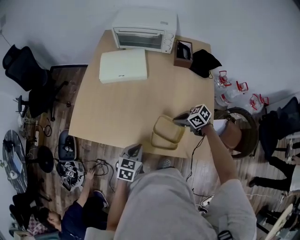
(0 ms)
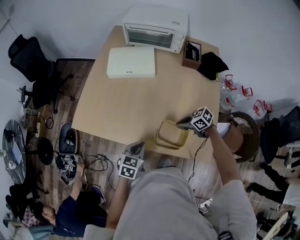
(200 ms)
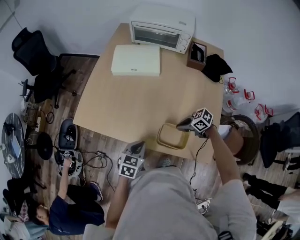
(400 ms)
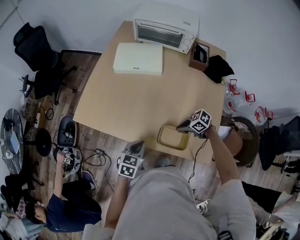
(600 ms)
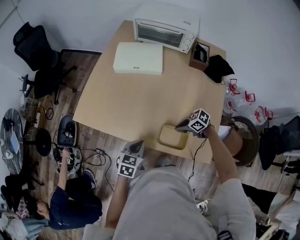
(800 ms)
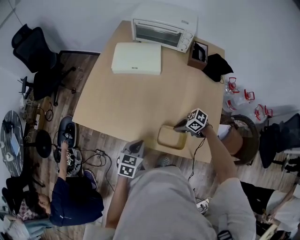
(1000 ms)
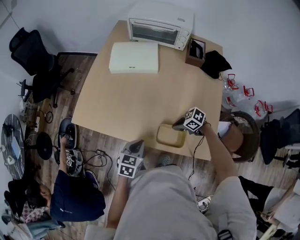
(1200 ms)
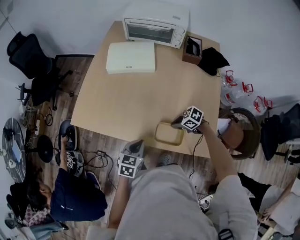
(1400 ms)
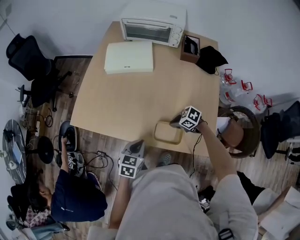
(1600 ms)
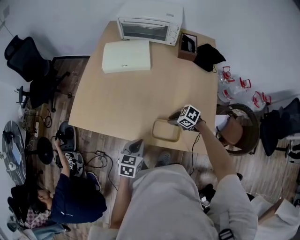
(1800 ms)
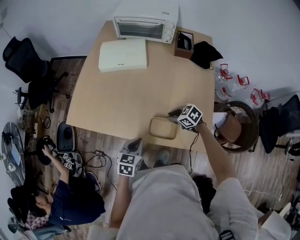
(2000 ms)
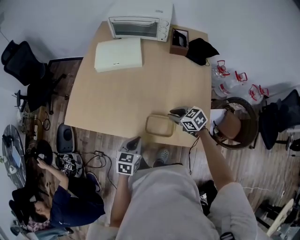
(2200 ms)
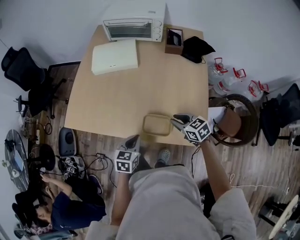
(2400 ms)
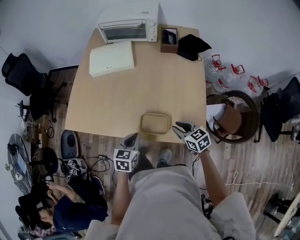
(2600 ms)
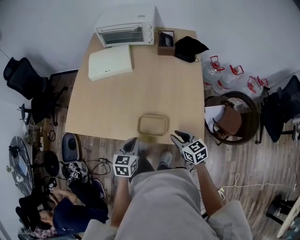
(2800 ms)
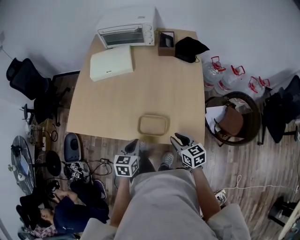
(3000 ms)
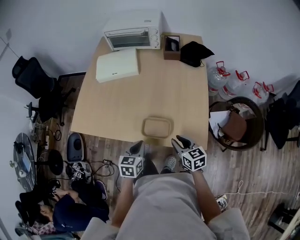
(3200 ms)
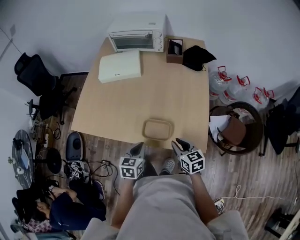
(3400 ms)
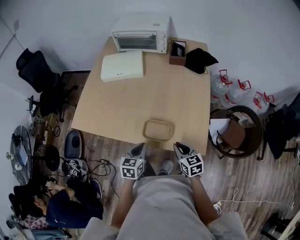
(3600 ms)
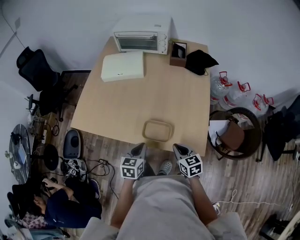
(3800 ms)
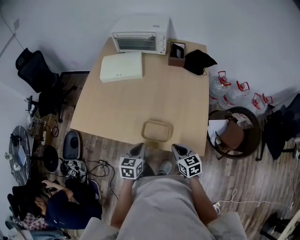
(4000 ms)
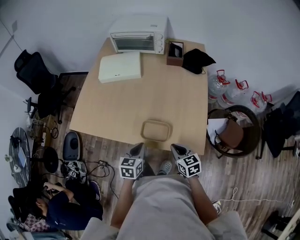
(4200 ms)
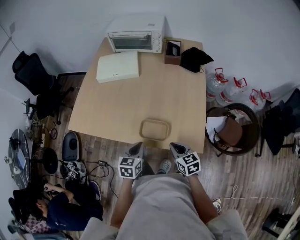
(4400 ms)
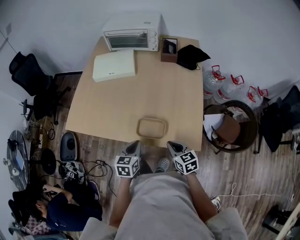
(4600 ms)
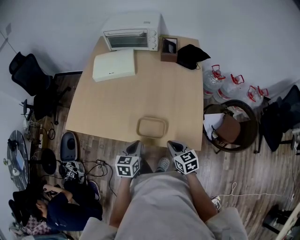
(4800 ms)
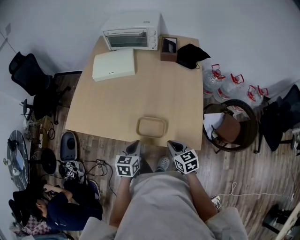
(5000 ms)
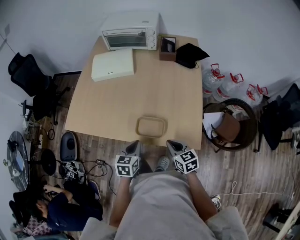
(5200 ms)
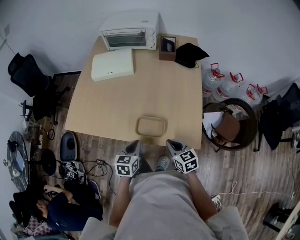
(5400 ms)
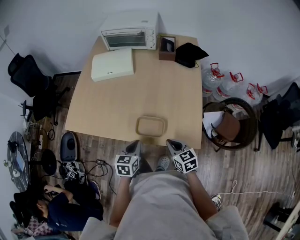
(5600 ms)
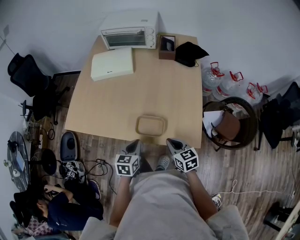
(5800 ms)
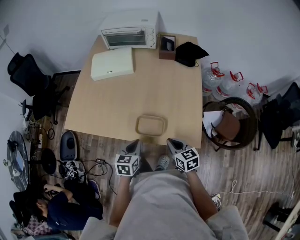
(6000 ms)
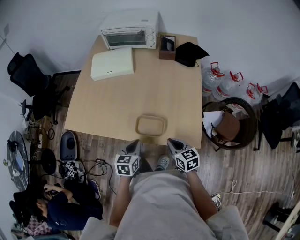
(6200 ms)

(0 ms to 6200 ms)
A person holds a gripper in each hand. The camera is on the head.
0 ms - 1600 ms: The right gripper shifts about 5 cm downward, and swivels some 20 degrees.
1600 ms - 3200 ms: The left gripper shifts by roughly 10 cm. The right gripper ends up roughly 20 cm from where it was, and swivels some 60 degrees.
3200 ms - 4600 ms: The right gripper closes its fingers.
4600 ms - 6200 ms: Both grippers stay about where they are.

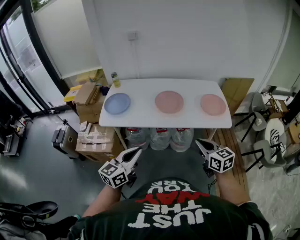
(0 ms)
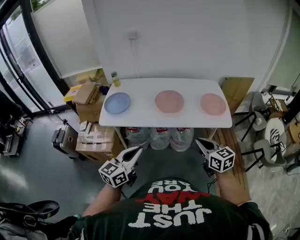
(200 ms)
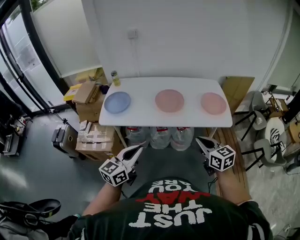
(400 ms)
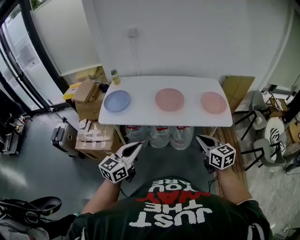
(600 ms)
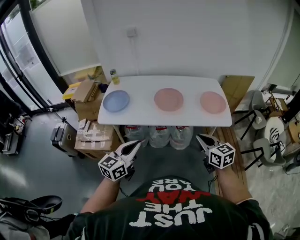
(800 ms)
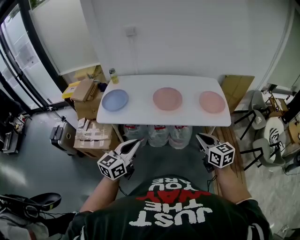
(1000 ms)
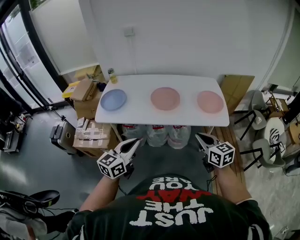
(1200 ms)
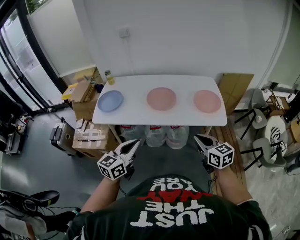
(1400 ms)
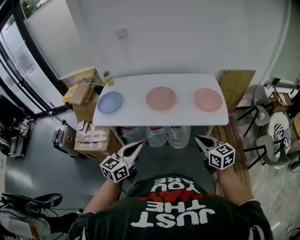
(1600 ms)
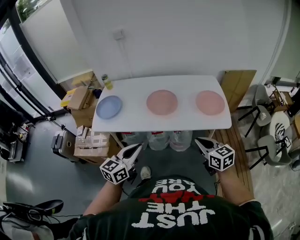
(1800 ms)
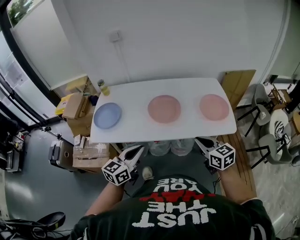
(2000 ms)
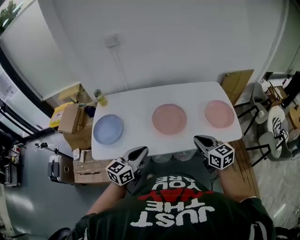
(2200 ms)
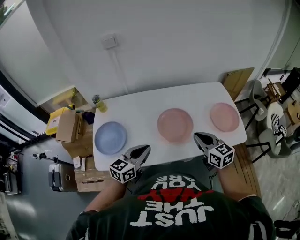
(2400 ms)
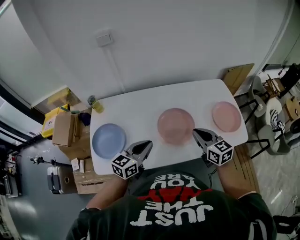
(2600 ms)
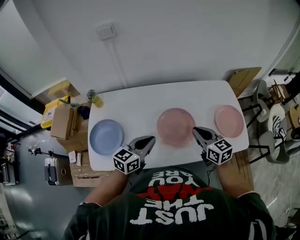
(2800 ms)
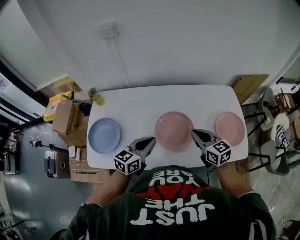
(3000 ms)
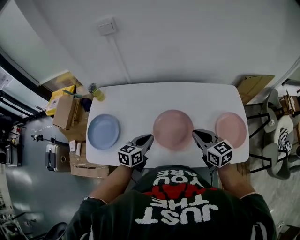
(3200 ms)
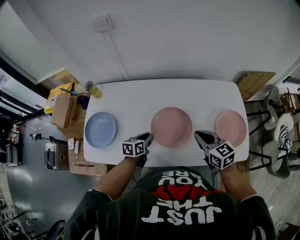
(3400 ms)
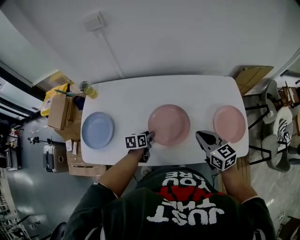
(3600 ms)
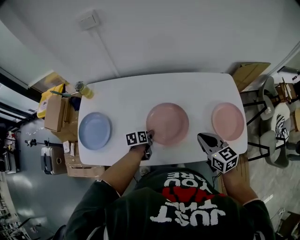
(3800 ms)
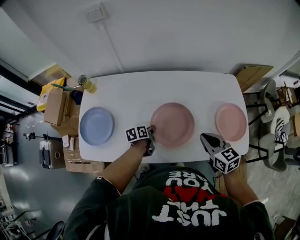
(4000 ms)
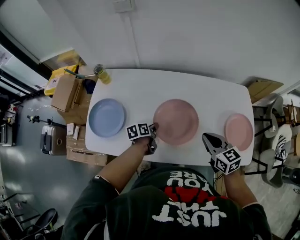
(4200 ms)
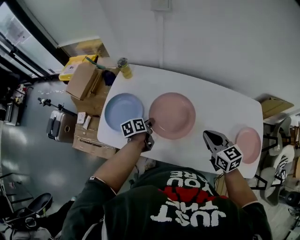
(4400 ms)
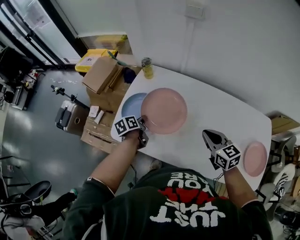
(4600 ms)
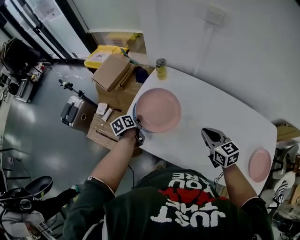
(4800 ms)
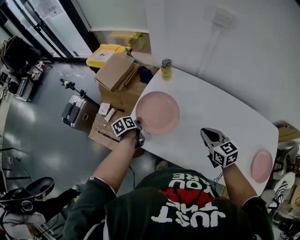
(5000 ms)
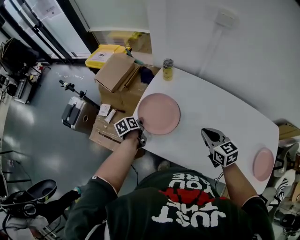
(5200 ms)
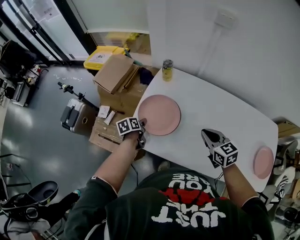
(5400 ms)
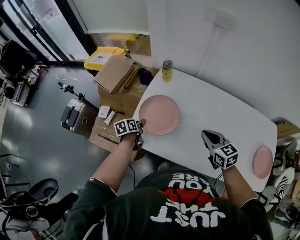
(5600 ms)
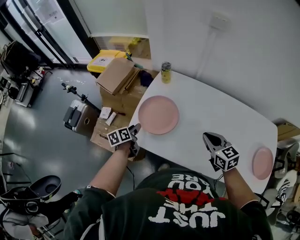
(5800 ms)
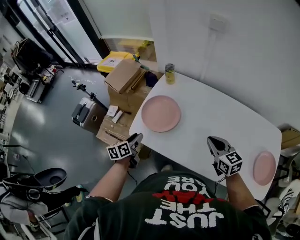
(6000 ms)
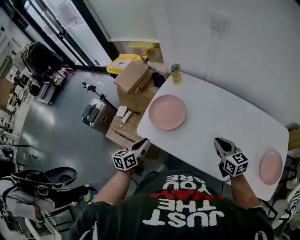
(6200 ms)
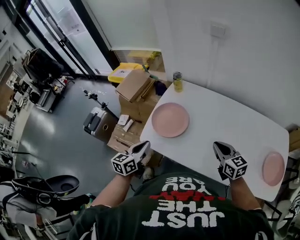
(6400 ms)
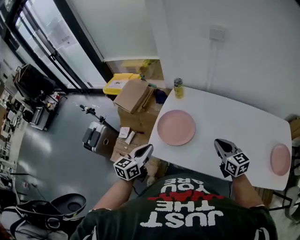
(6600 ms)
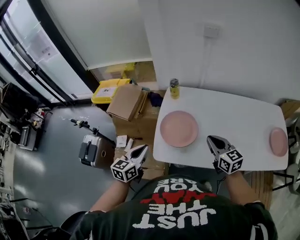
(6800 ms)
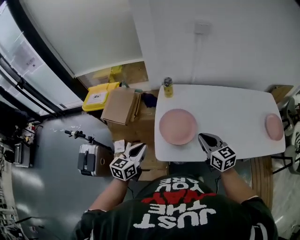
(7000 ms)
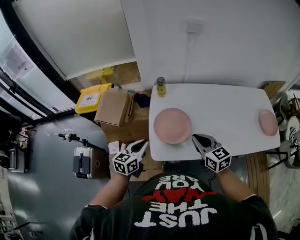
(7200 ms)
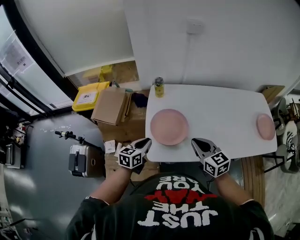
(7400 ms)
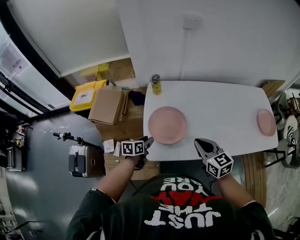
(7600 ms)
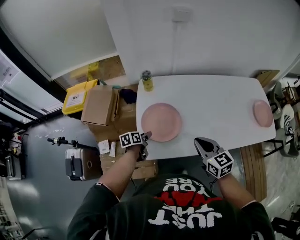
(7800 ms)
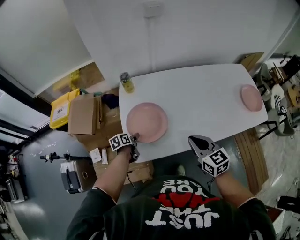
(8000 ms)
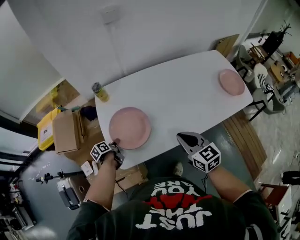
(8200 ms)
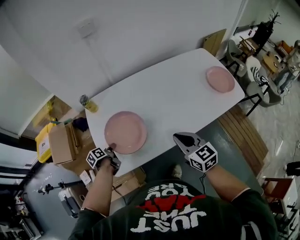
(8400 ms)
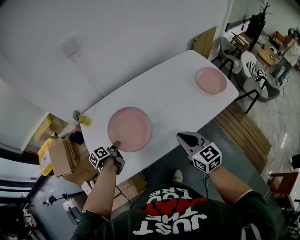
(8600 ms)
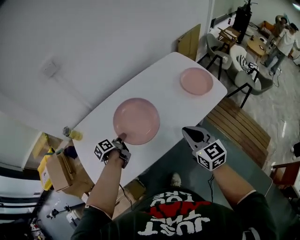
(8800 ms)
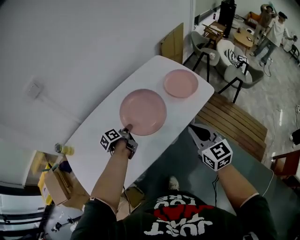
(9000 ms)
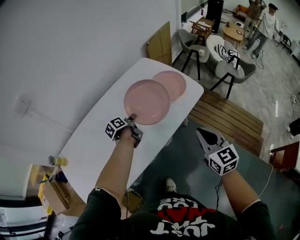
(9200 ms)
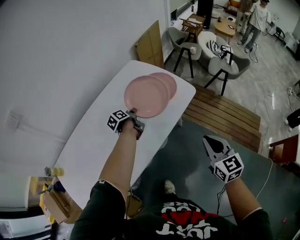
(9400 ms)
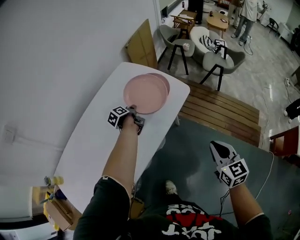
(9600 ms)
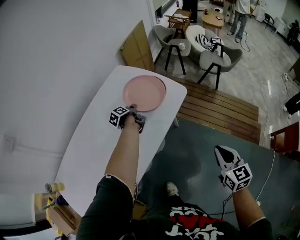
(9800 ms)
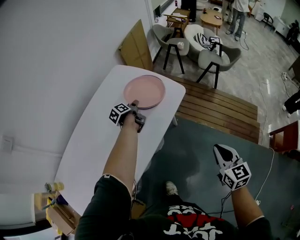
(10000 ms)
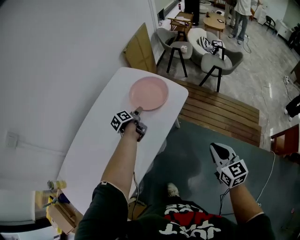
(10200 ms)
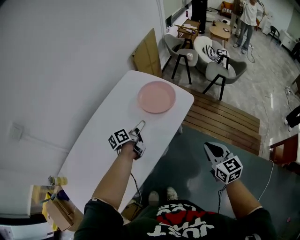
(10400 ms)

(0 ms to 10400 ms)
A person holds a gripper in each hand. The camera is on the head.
0 ms - 1400 ms: Both grippers move to the right, approximately 5 cm.
1400 ms - 3000 ms: Both grippers are carried forward, some 40 cm.
3000 ms - 4400 ms: The right gripper travels to the left by some 10 cm. The left gripper goes about 25 cm downward, to the left and forward, rolls counterclockwise, seen from behind, by roughly 50 degrees, and opens, then closes once more.
4400 ms - 6000 ms: The left gripper goes some 30 cm to the left, changes its angle by roughly 20 degrees, and opens; the right gripper heads to the left, covering some 15 cm.
6000 ms - 7400 ms: The right gripper changes place by roughly 25 cm, and swivels roughly 20 degrees. Meanwhile the left gripper reaches roughly 10 cm upward, then returns, rotates roughly 50 degrees, and closes up.
7400 ms - 9000 ms: Both grippers are carried some 50 cm. The right gripper swivels roughly 40 degrees, while the left gripper swivels about 40 degrees, and opens and closes again.
9000 ms - 10400 ms: The right gripper heads to the right, covering roughly 20 cm. Meanwhile the left gripper moves to the right and forward, some 25 cm, swivels about 30 degrees, and opens.

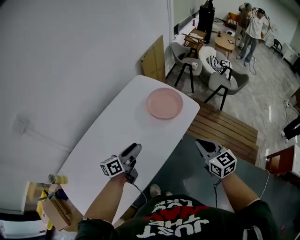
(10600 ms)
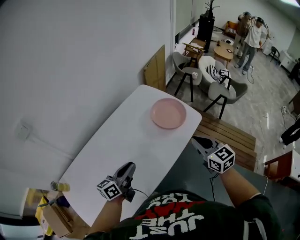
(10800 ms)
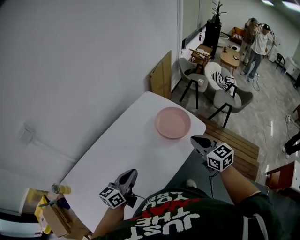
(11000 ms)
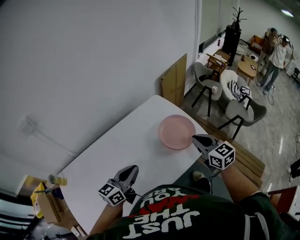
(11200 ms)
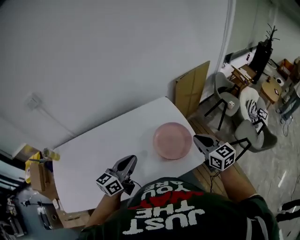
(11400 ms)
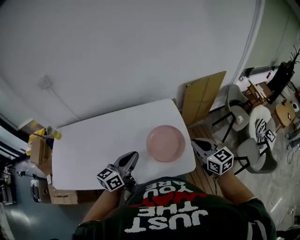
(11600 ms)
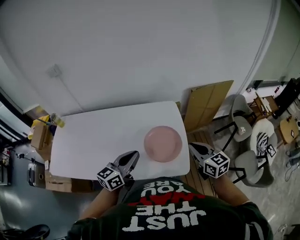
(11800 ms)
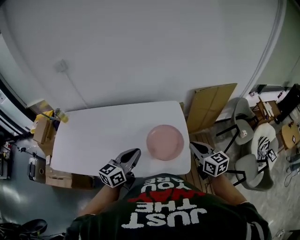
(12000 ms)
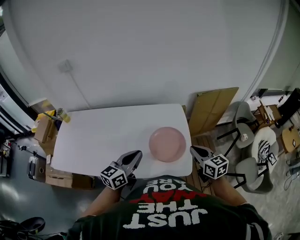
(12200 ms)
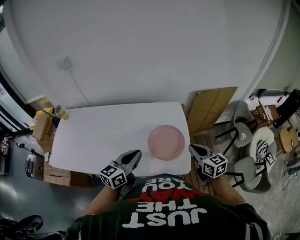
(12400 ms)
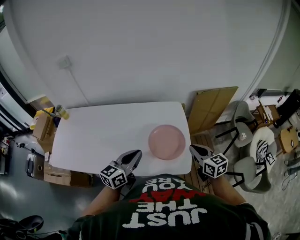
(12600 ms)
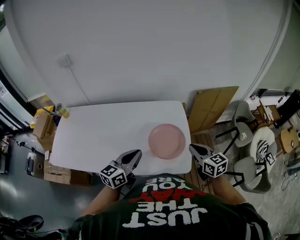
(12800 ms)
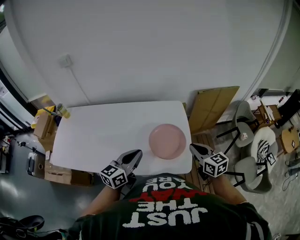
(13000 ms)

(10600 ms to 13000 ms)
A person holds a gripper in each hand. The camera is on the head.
10600 ms - 11800 ms: The right gripper changes place by roughly 35 cm, and rotates approximately 50 degrees. Meanwhile the left gripper moves about 20 cm, rotates roughly 50 degrees, and closes.
11800 ms - 13000 ms: The grippers move only a little.

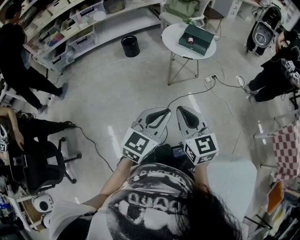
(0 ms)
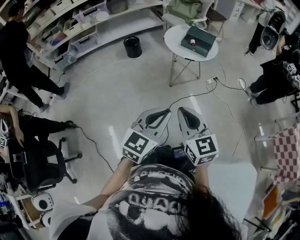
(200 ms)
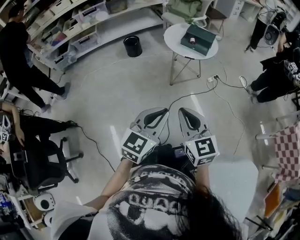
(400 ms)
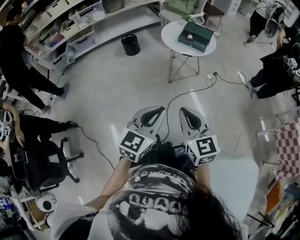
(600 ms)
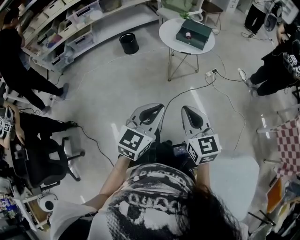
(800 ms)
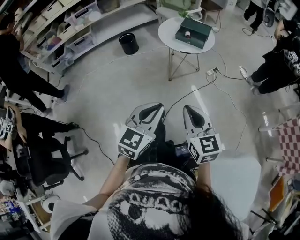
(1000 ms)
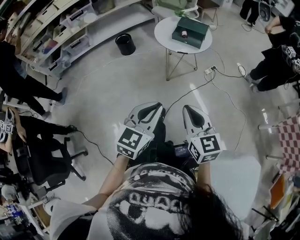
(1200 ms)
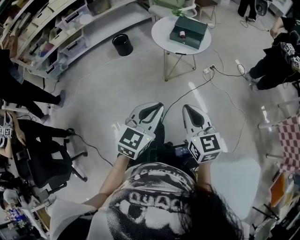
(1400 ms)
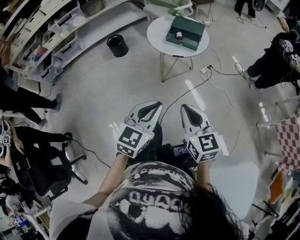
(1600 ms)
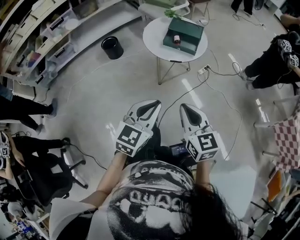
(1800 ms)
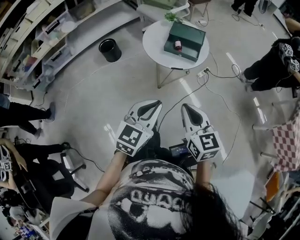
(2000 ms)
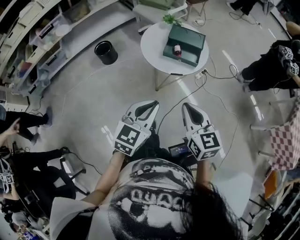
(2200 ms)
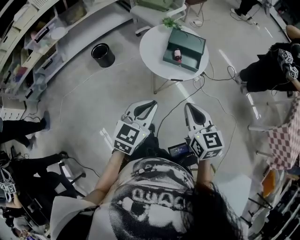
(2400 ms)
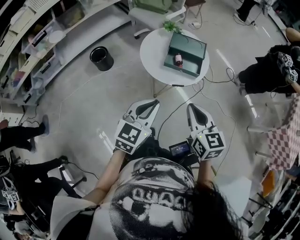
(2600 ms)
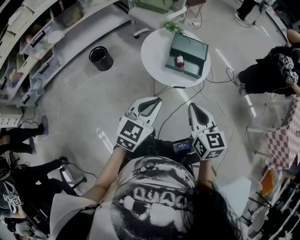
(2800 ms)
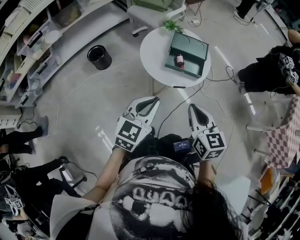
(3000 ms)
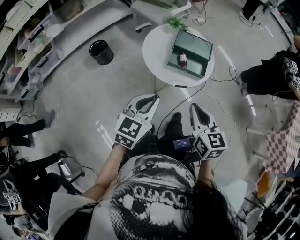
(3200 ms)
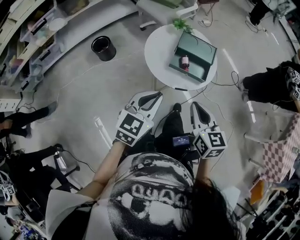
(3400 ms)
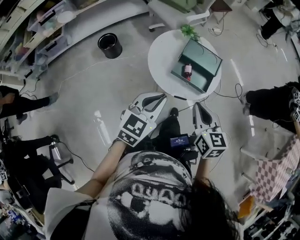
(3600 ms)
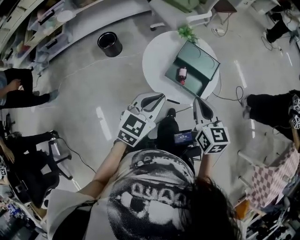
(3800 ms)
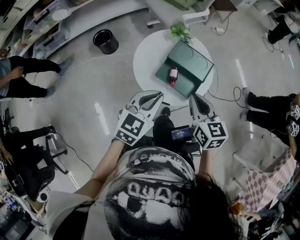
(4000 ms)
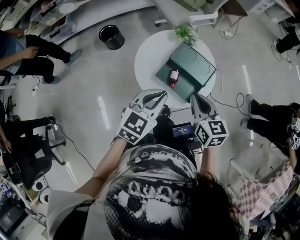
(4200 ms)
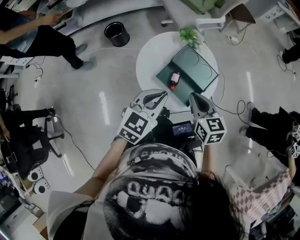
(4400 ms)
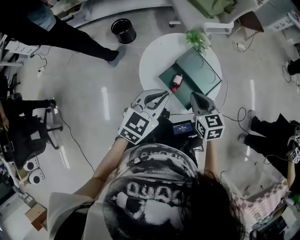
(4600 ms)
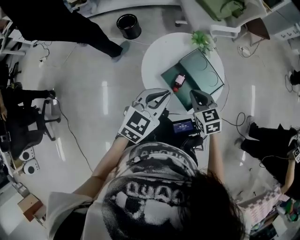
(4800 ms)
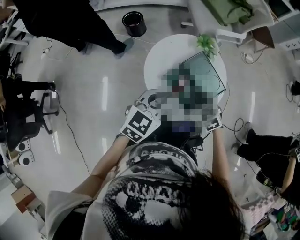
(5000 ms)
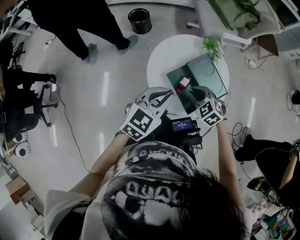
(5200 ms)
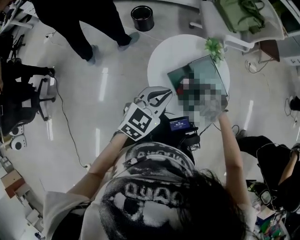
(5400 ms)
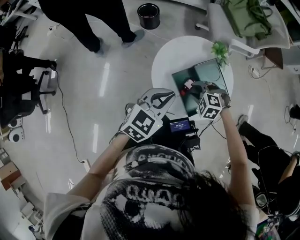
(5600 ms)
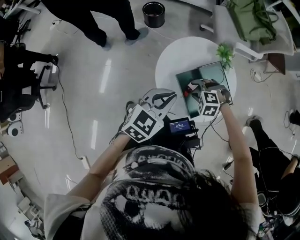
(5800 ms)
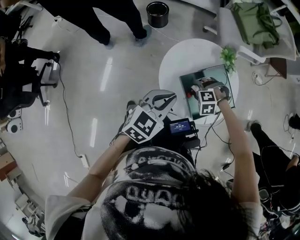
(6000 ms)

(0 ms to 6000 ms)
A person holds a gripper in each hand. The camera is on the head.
0 ms - 1600 ms: The right gripper is displaced forward and to the right by approximately 15 cm. The left gripper shifts about 15 cm forward.
1600 ms - 3000 ms: The right gripper travels forward by some 30 cm. Meanwhile the left gripper moves forward and to the left, some 30 cm.
3000 ms - 4400 ms: The right gripper shifts by approximately 30 cm, and changes its angle by roughly 30 degrees. The left gripper shifts by roughly 25 cm, and swivels some 20 degrees.
4400 ms - 6000 ms: The left gripper shifts by some 5 cm; the right gripper shifts roughly 20 cm downward, rolls counterclockwise, seen from behind, by approximately 100 degrees, and opens up.
